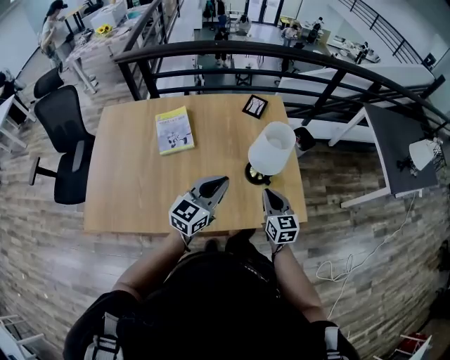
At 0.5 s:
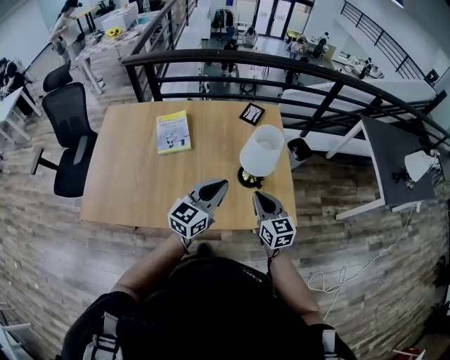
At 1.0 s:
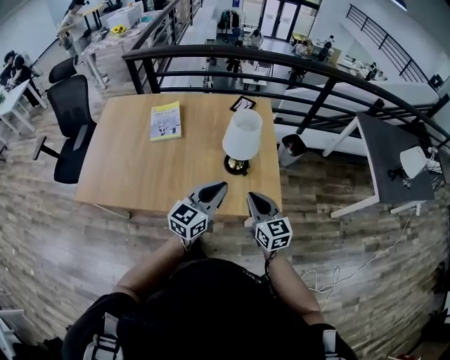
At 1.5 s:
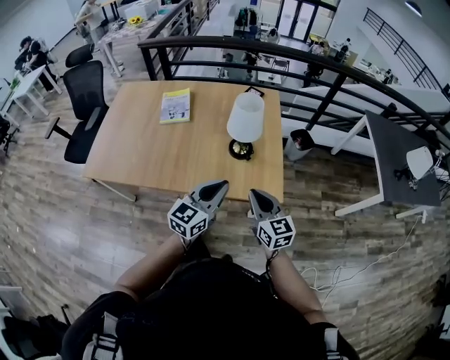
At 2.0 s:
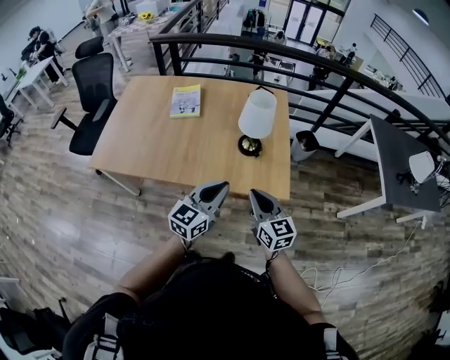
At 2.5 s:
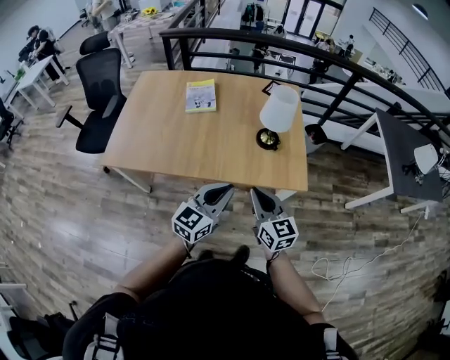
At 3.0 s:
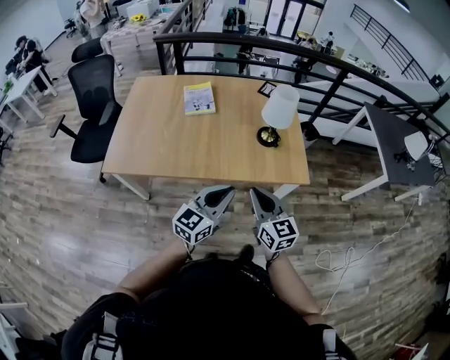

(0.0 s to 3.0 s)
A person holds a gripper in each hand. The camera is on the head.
0.0 s - 1.5 s: The right gripper heads backward, to the right and upward, covering some 25 cm, and rotates approximately 20 degrees. The left gripper heads backward and to the right, covering some 25 cm.
1.5 s - 3.0 s: Both grippers travel together to the left and backward, about 25 cm.

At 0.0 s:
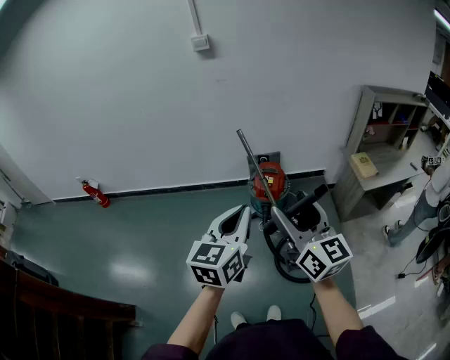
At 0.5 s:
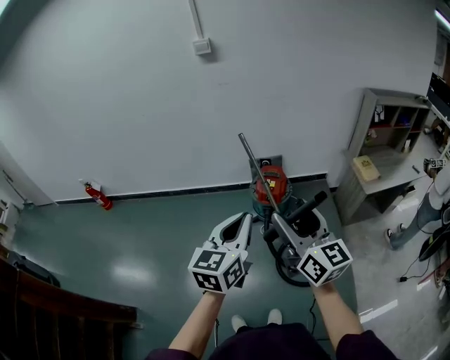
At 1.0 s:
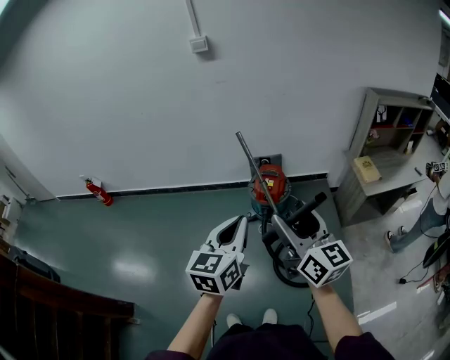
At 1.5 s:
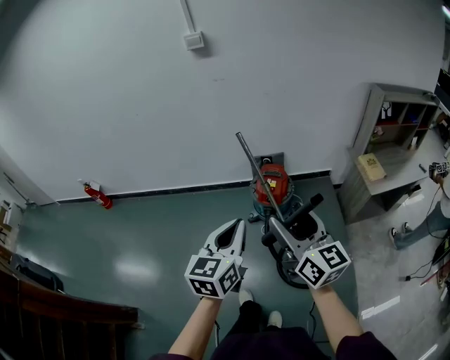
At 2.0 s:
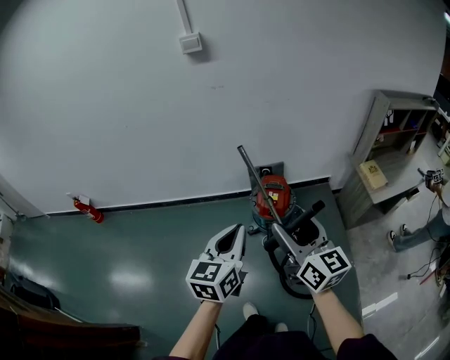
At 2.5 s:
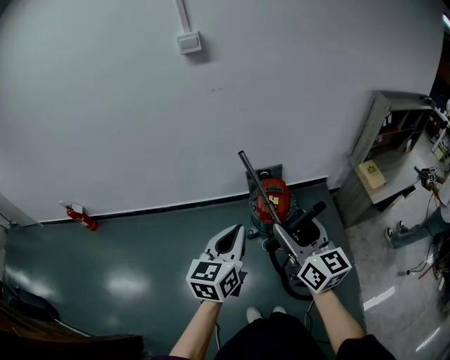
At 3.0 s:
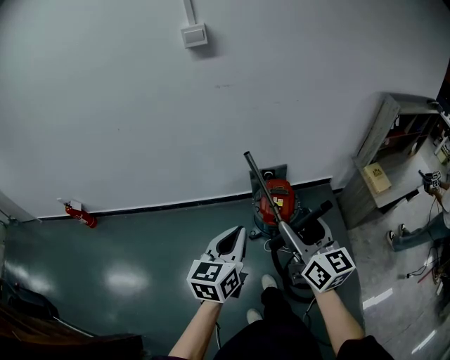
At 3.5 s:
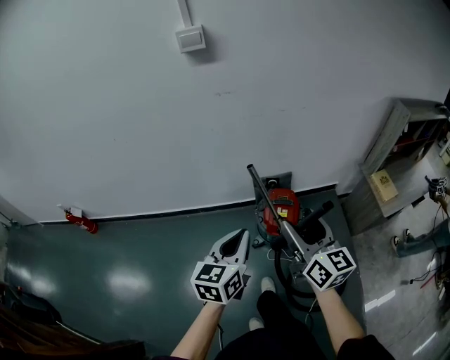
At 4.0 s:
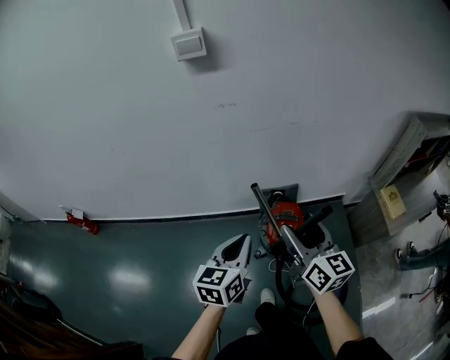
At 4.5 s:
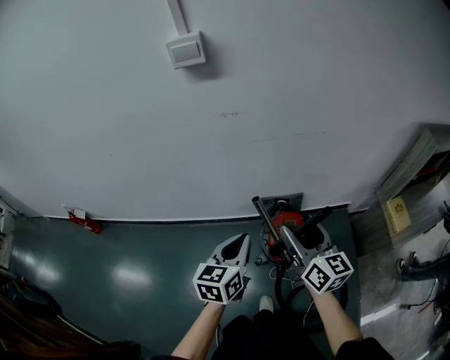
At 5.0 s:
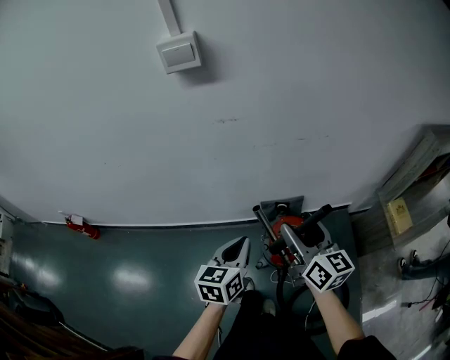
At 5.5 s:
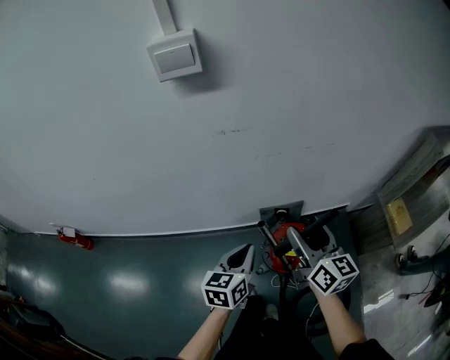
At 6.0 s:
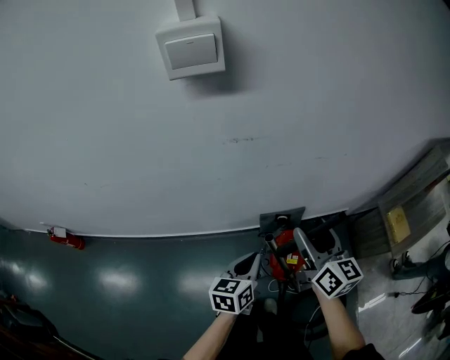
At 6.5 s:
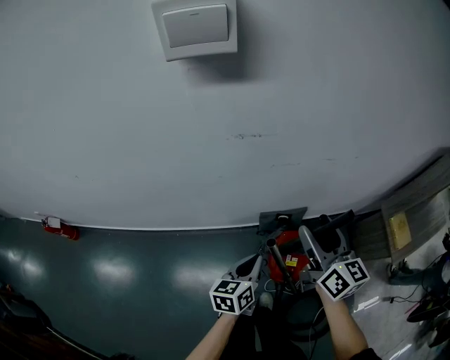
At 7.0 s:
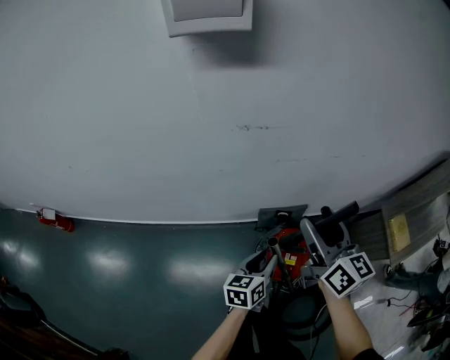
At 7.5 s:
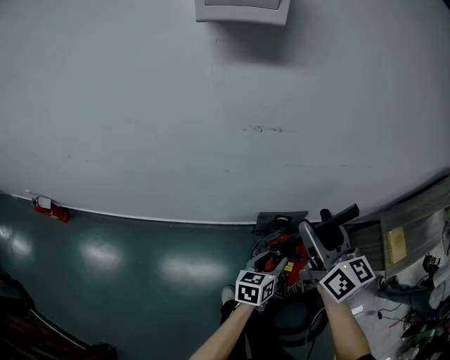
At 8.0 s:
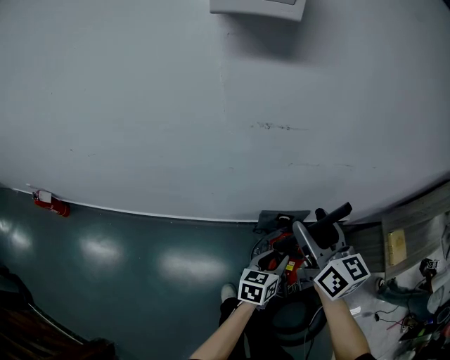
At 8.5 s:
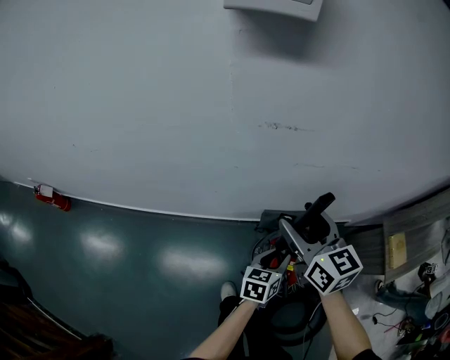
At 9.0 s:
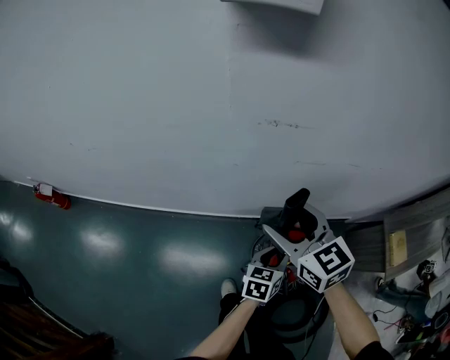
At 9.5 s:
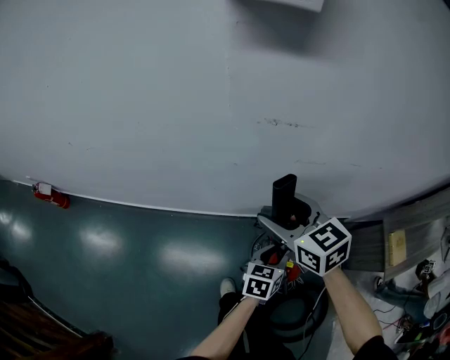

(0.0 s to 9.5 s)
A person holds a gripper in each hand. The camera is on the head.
0.0 s - 2.0 s: The two grippers go roughly 15 cm forward.
2.0 s - 4.0 s: Both grippers travel together forward, some 25 cm.
4.0 s - 5.5 s: The left gripper is displaced forward and downward by approximately 20 cm; the right gripper shifts approximately 15 cm forward.
5.5 s - 7.5 s: The right gripper goes about 10 cm forward and to the left; the left gripper travels downward and forward by some 20 cm, and opens its fingers.
7.5 s - 9.5 s: The right gripper goes about 15 cm to the left and downward, and turns by some 40 degrees.

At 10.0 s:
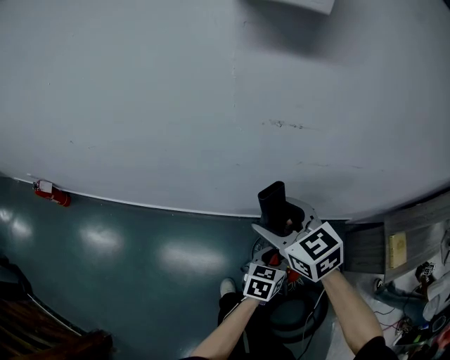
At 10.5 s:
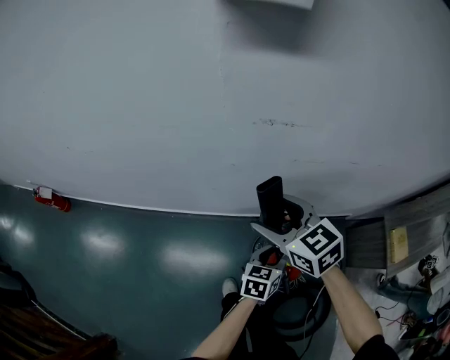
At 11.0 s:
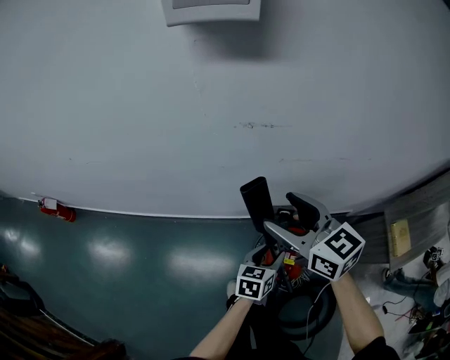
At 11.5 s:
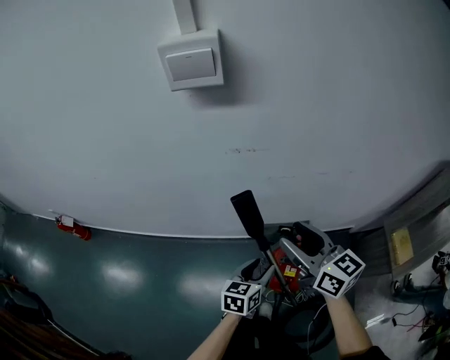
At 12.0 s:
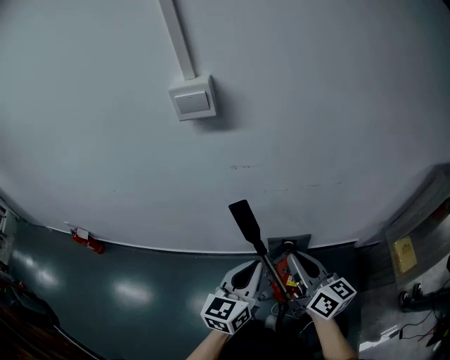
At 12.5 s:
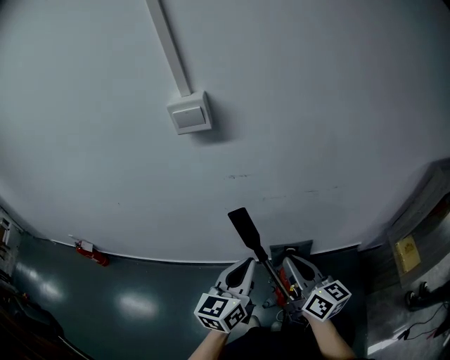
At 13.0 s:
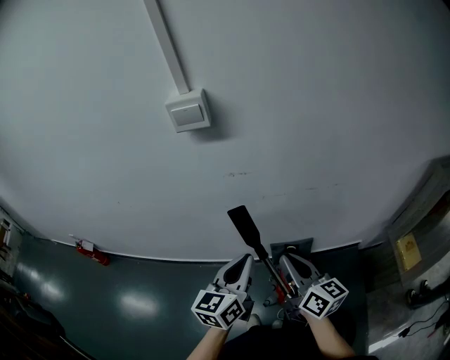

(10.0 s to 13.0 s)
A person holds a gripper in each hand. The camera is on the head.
10.0 s - 11.5 s: The left gripper is displaced upward by about 10 cm. The right gripper heads to the right, upward and backward, covering roughly 20 cm, and changes its angle by roughly 30 degrees.
11.5 s - 13.0 s: The right gripper shifts about 10 cm backward, and closes its fingers. The left gripper travels upward by some 20 cm, changes its angle by some 30 degrees, and closes its fingers.

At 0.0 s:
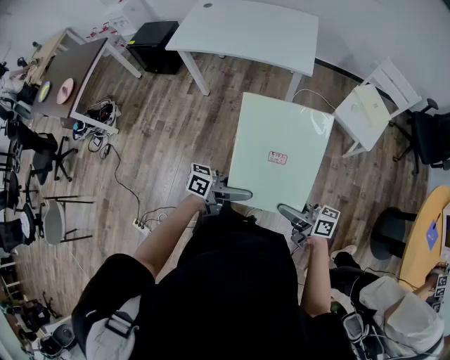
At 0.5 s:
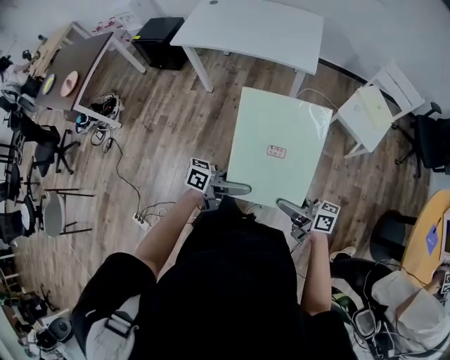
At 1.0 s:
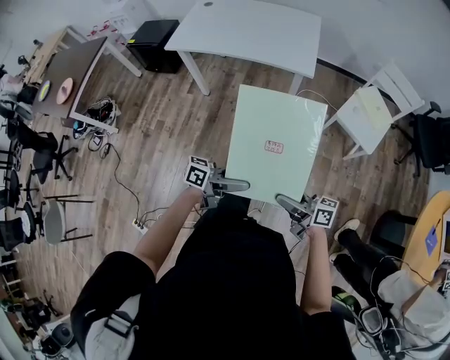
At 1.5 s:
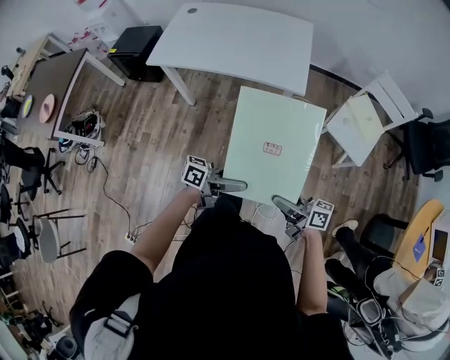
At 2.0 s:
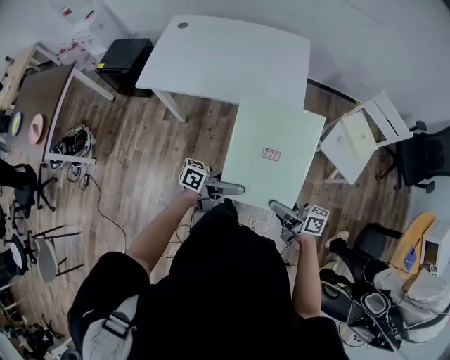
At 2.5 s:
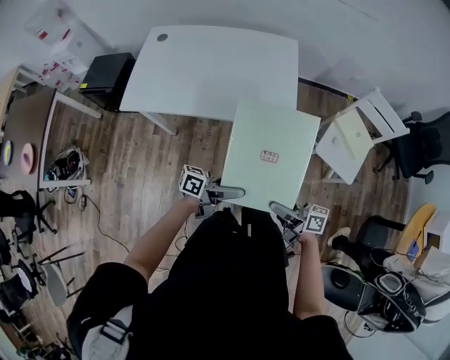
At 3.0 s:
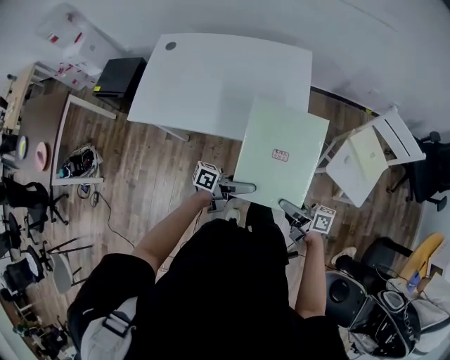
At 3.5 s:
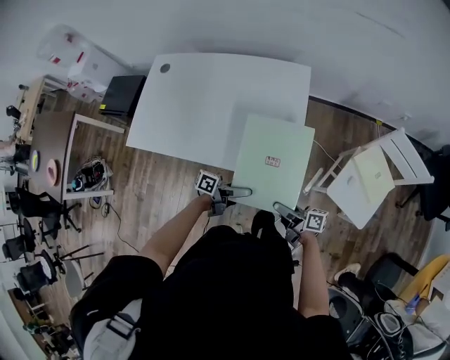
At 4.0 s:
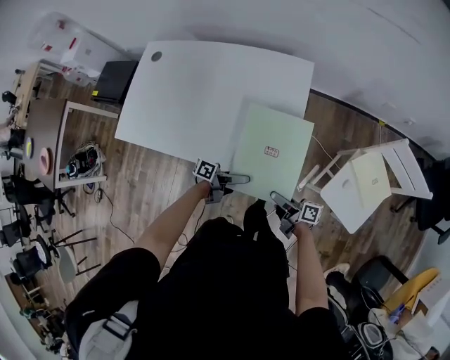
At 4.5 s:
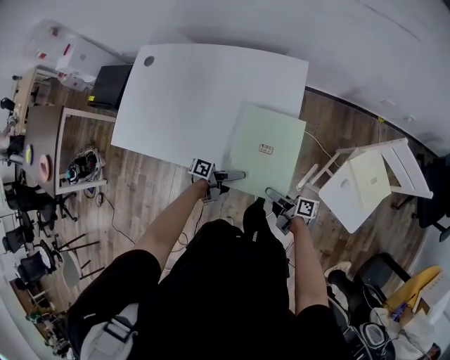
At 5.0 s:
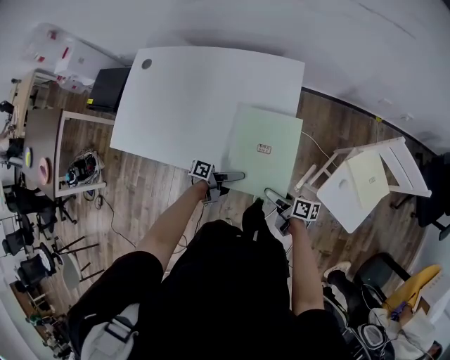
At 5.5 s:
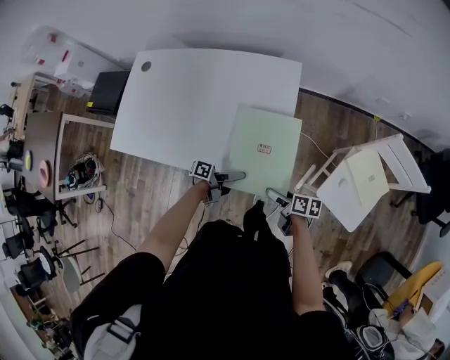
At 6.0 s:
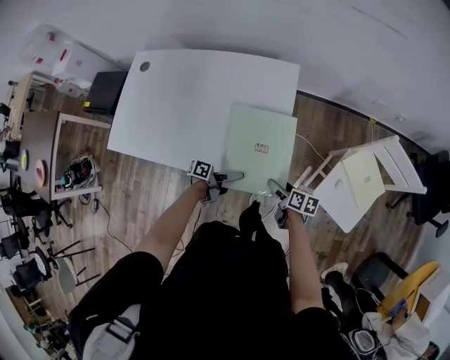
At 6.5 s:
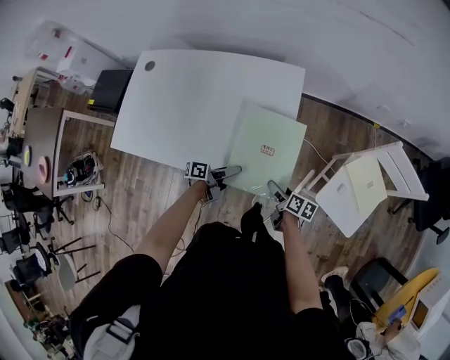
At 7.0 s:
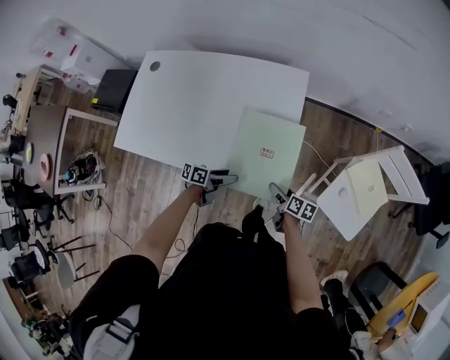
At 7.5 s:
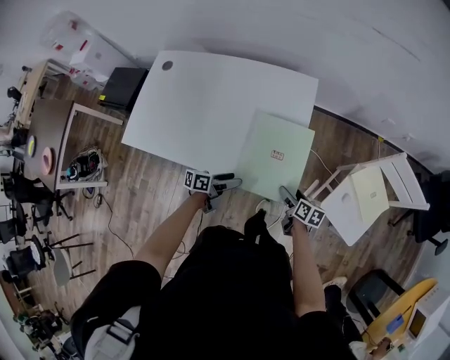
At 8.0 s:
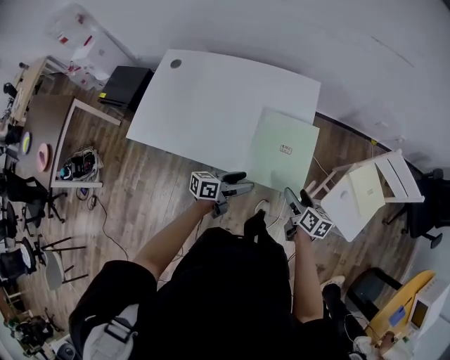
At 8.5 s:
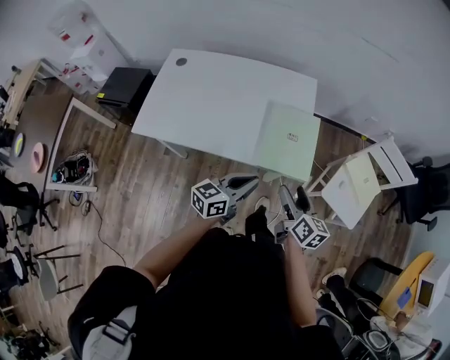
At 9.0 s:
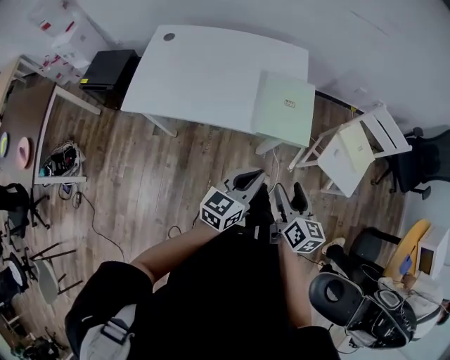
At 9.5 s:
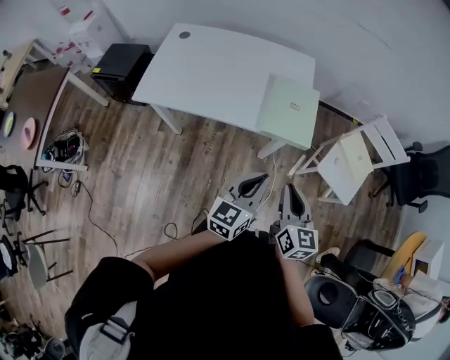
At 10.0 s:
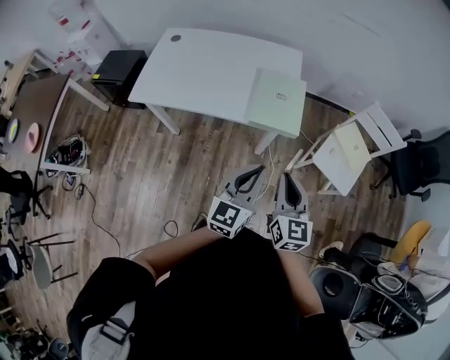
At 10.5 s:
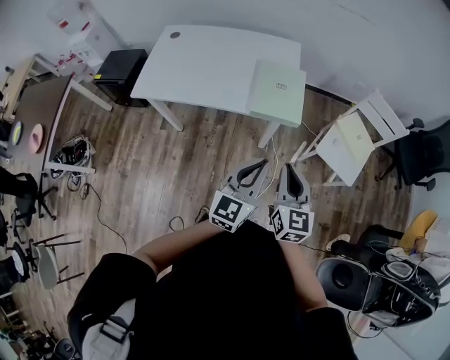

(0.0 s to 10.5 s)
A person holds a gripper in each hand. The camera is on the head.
0.0 s - 2.0 s: The left gripper ends up roughly 30 cm from where it was. The right gripper changes place by roughly 30 cm.
2.0 s - 4.0 s: The right gripper changes place by roughly 40 cm; the left gripper ends up about 40 cm from where it was, and turns by about 30 degrees.
4.0 s - 6.5 s: The right gripper ends up approximately 10 cm from where it was, and tilts its fingers about 40 degrees downward. The left gripper ends up approximately 5 cm from where it was.
6.5 s - 8.5 s: The grippers both shift upward and backward by some 30 cm. The left gripper rotates around the line of its fingers by about 50 degrees, clockwise from behind, and closes up; the right gripper changes its angle by about 40 degrees.
8.5 s - 10.5 s: The left gripper moves backward, upward and to the right, some 20 cm, and turns by roughly 30 degrees, while the right gripper goes roughly 20 cm backward and upward, rotates some 30 degrees, and closes up.
